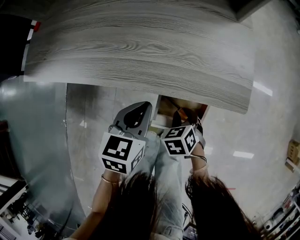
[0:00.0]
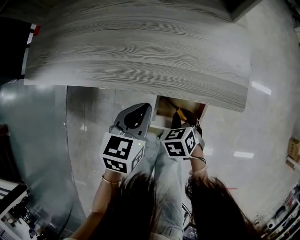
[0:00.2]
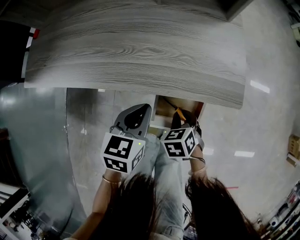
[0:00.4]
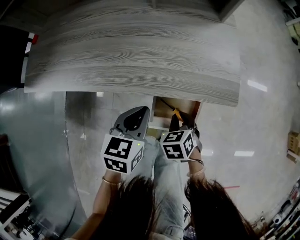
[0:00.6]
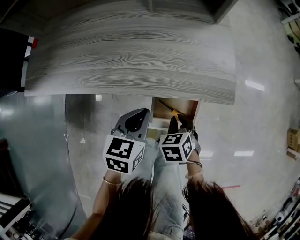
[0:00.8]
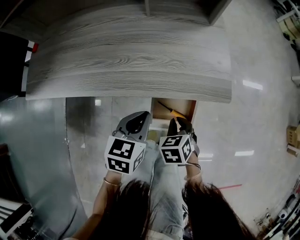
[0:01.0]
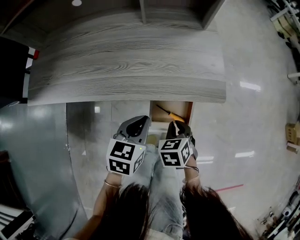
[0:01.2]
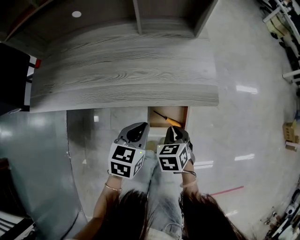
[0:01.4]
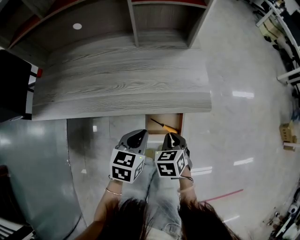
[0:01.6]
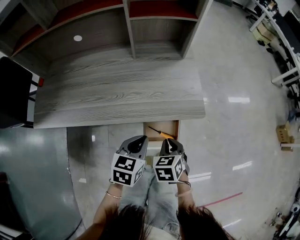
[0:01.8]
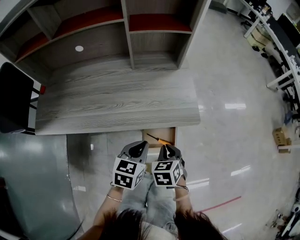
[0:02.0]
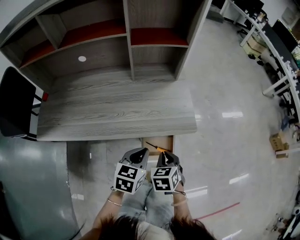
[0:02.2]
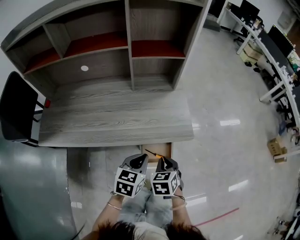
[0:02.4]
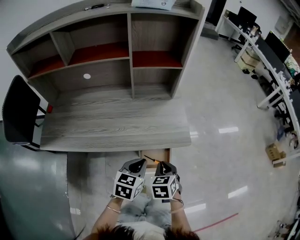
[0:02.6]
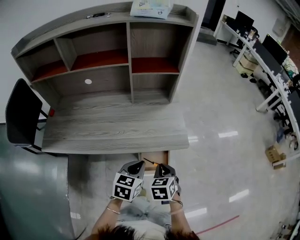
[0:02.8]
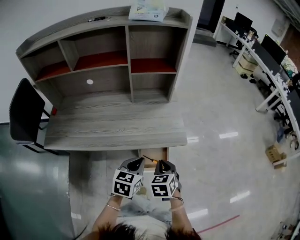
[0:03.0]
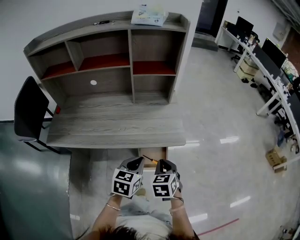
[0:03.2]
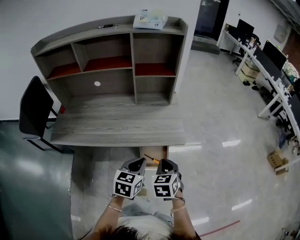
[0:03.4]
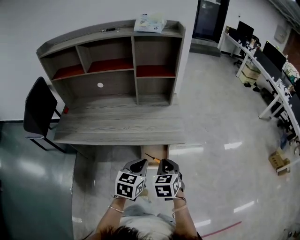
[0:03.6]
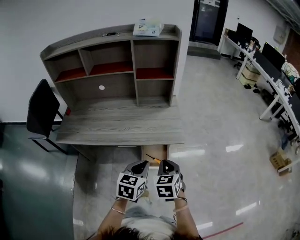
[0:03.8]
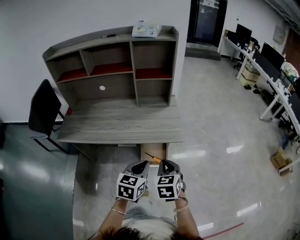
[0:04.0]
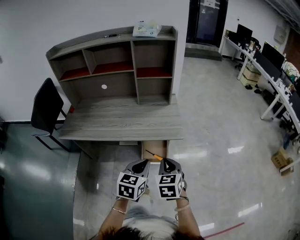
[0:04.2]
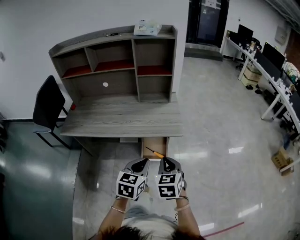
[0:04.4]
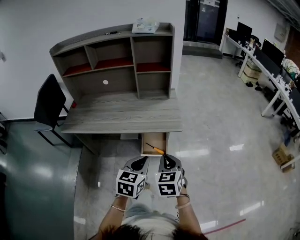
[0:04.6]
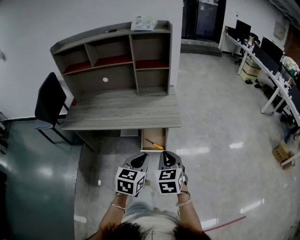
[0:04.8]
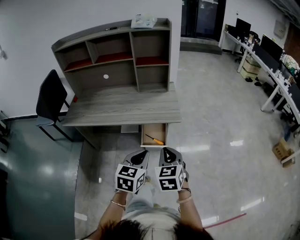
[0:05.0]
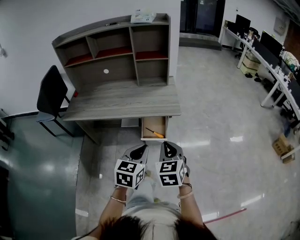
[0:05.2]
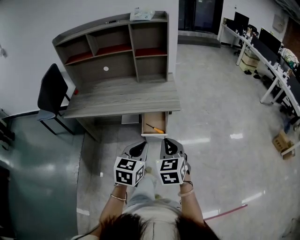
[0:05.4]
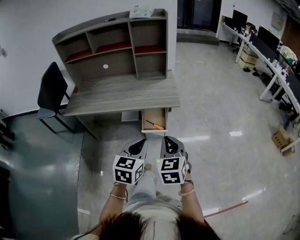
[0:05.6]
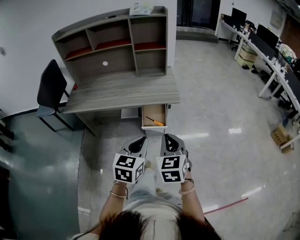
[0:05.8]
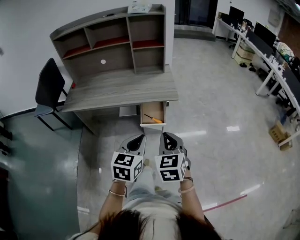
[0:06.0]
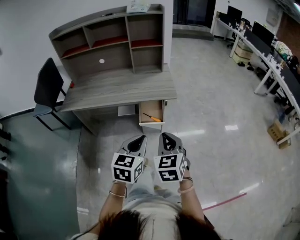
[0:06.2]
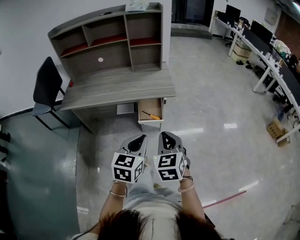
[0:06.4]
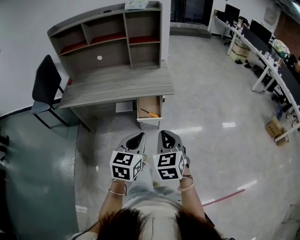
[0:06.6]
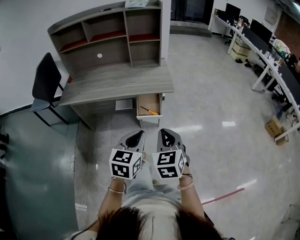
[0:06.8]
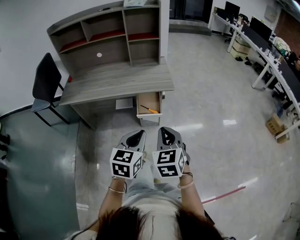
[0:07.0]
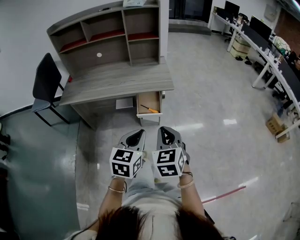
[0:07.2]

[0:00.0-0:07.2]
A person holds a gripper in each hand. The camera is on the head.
0:00.0 to 0:01.4: The left gripper moves about 5 cm, while the right gripper goes some 10 cm upward.
0:01.4 to 0:02.8: Both grippers travel together upward, roughly 15 cm.
0:02.8 to 0:04.4: Both grippers travel together backward, upward and to the right, approximately 20 cm.
0:04.4 to 0:05.8: The two grippers go approximately 15 cm backward.
0:05.8 to 0:07.2: The right gripper moves backward, some 5 cm.

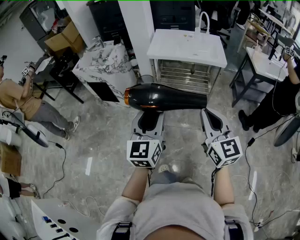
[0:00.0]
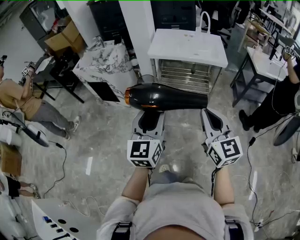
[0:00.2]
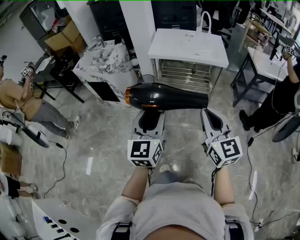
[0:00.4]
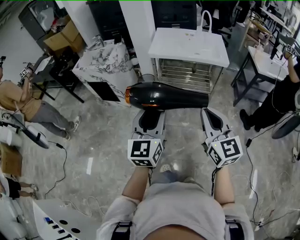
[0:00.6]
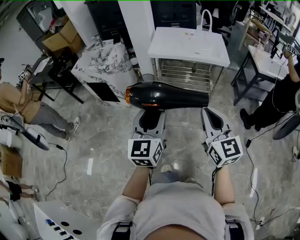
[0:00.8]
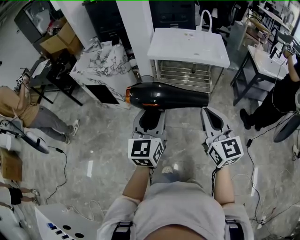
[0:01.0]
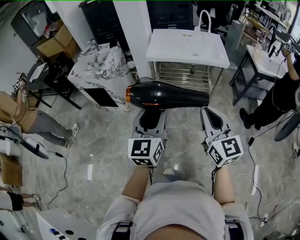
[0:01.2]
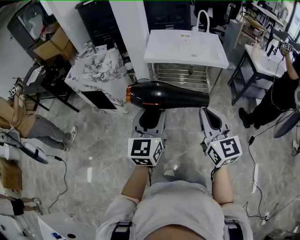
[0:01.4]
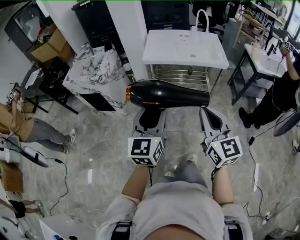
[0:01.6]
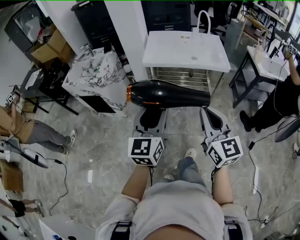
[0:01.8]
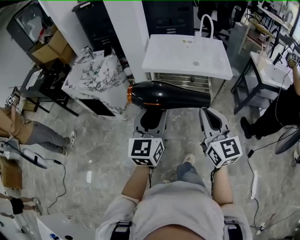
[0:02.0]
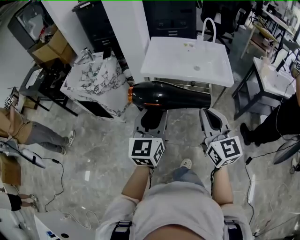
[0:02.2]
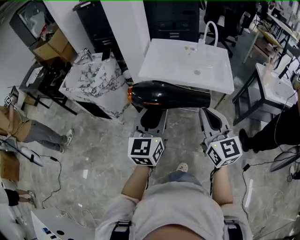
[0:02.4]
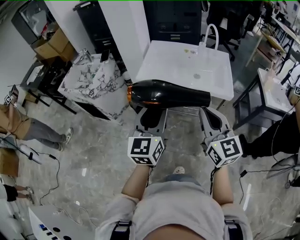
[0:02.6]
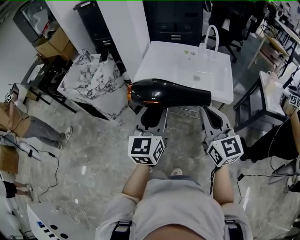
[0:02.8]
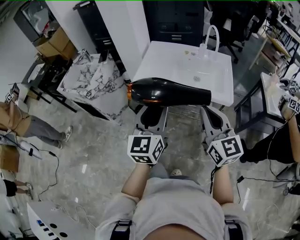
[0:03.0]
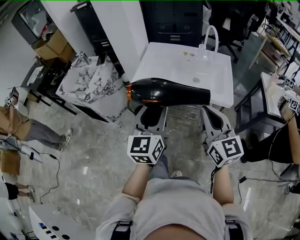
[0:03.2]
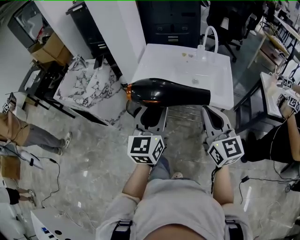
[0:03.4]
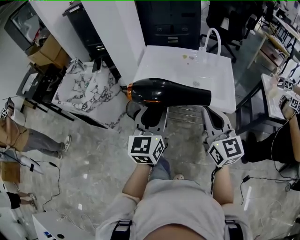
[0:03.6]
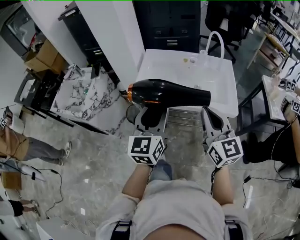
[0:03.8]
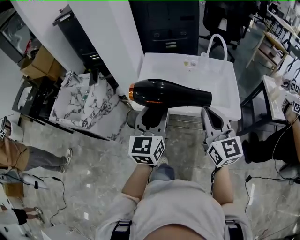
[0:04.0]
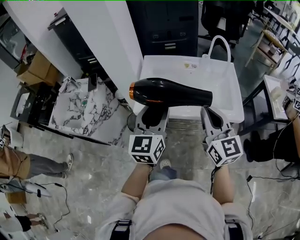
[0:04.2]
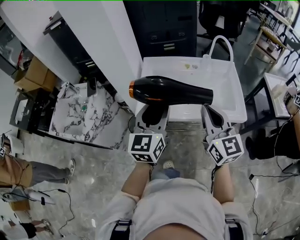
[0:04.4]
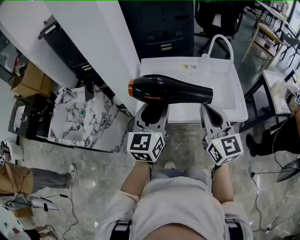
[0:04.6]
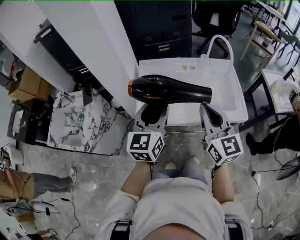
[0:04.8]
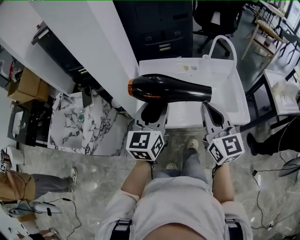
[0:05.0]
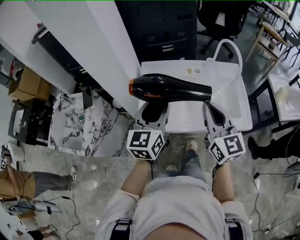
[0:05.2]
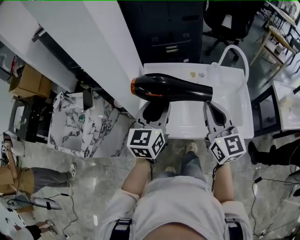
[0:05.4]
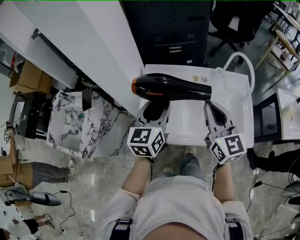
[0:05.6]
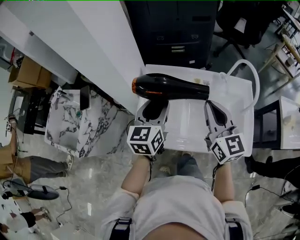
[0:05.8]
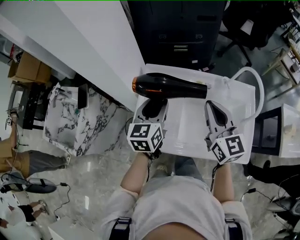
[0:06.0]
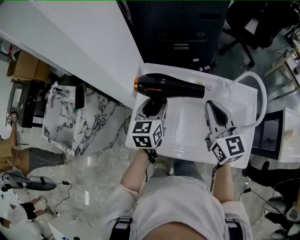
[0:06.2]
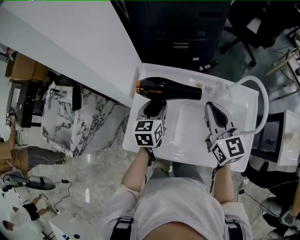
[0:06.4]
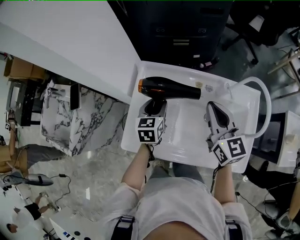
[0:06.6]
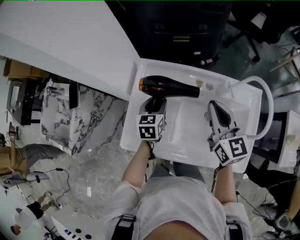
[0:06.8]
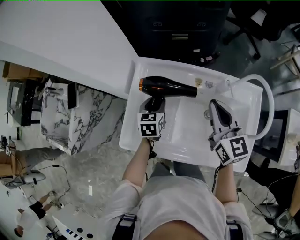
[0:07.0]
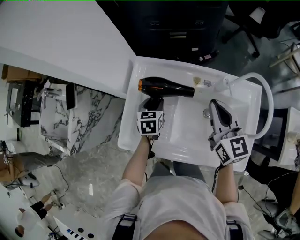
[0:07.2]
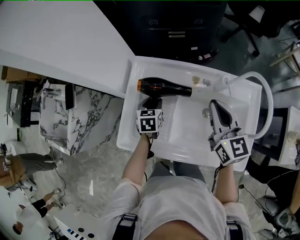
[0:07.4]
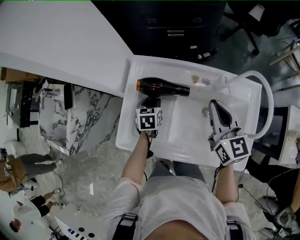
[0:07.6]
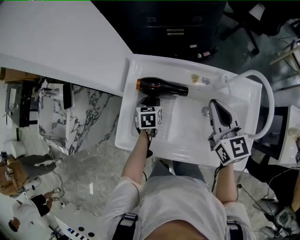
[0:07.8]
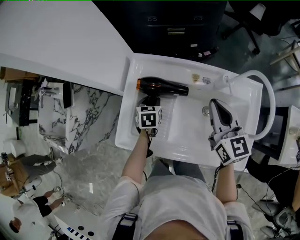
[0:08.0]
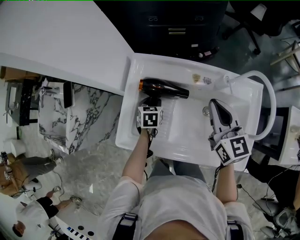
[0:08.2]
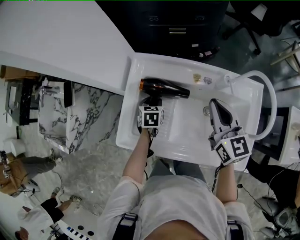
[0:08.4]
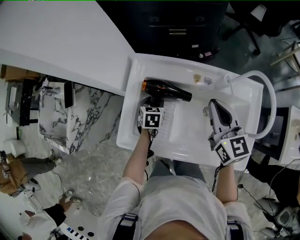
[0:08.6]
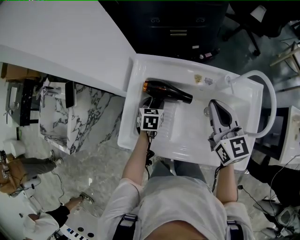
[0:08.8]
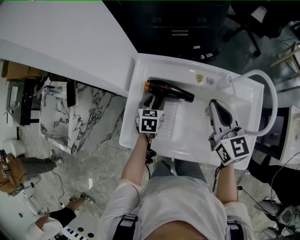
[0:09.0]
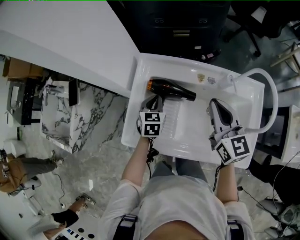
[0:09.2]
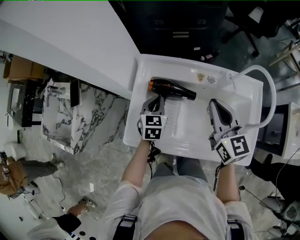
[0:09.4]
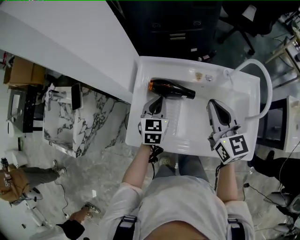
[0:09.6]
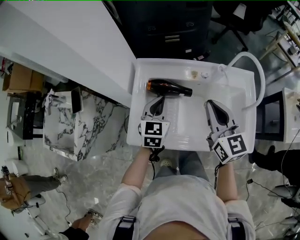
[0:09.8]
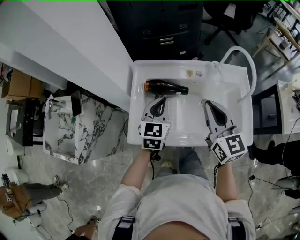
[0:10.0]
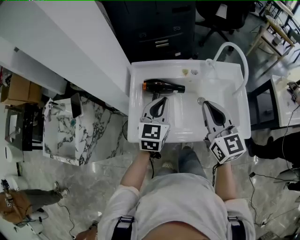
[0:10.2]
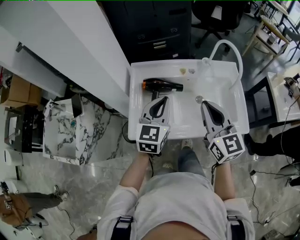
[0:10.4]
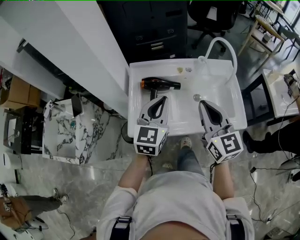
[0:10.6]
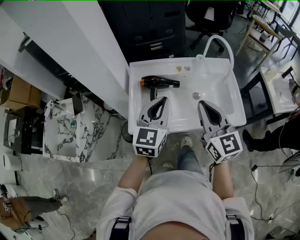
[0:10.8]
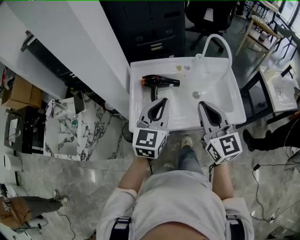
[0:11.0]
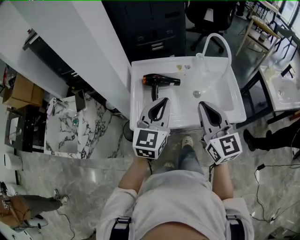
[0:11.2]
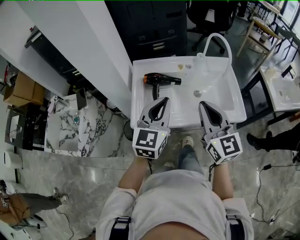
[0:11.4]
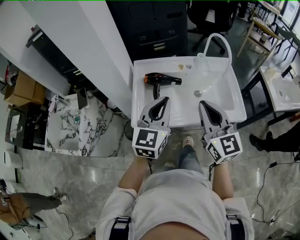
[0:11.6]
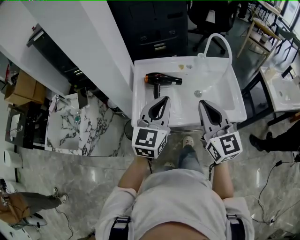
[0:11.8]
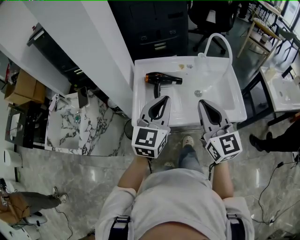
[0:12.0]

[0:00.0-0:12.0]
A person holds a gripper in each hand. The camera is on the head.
0:00.0 to 0:01.6: The two grippers go about 10 cm forward.
0:01.6 to 0:03.0: Both grippers travel together forward and to the right, about 30 cm.
0:03.0 to 0:04.4: The grippers both shift forward by roughly 25 cm.
0:04.4 to 0:06.0: The grippers both shift forward by about 25 cm.
0:06.0 to 0:07.6: The left gripper goes some 25 cm downward, and points its fingers some 30 degrees further downward. The right gripper goes roughly 10 cm downward, to the right and forward.
0:07.6 to 0:09.0: There are only small adjustments of the grippers.
0:09.0 to 0:10.4: The left gripper goes roughly 25 cm upward and backward, angles its fingers upward, by roughly 30 degrees, and closes its fingers, while the right gripper heads backward and upward, covering approximately 20 cm.
0:10.4 to 0:12.0: The left gripper goes some 15 cm backward and upward, while the right gripper goes approximately 10 cm backward.

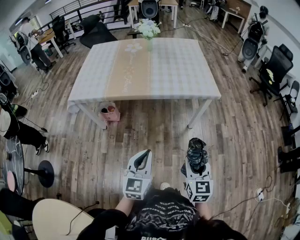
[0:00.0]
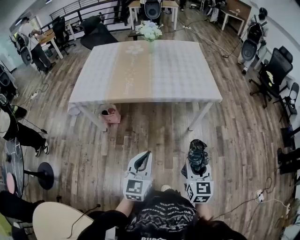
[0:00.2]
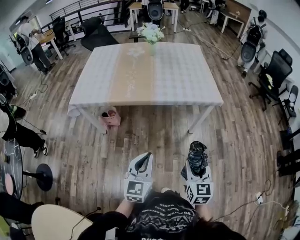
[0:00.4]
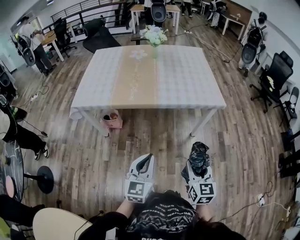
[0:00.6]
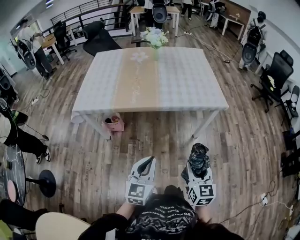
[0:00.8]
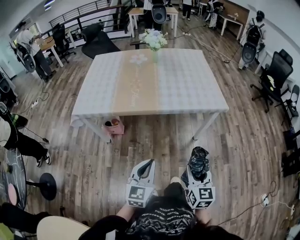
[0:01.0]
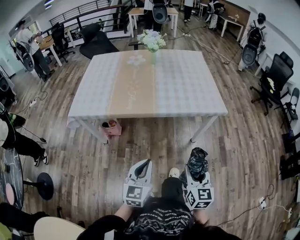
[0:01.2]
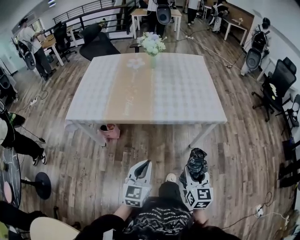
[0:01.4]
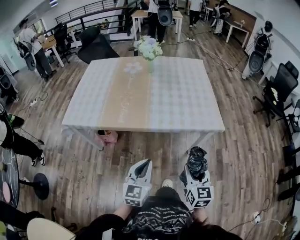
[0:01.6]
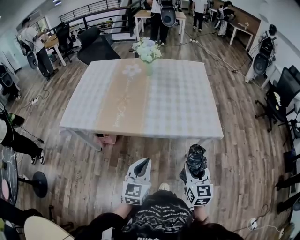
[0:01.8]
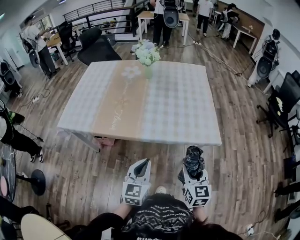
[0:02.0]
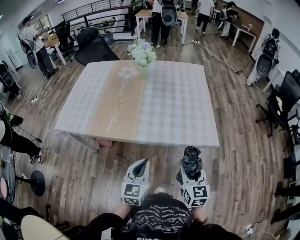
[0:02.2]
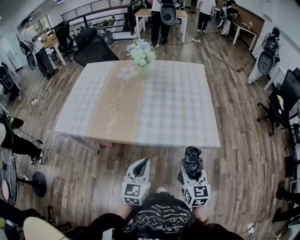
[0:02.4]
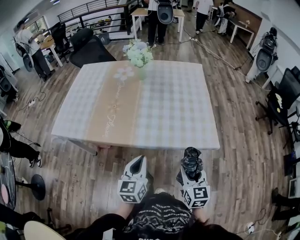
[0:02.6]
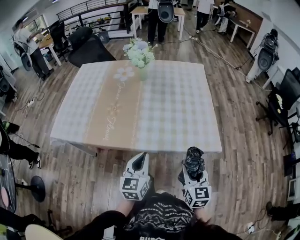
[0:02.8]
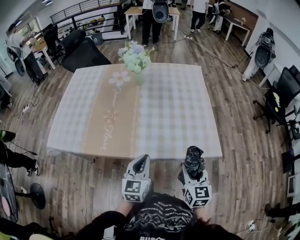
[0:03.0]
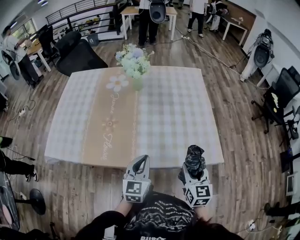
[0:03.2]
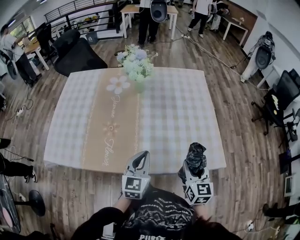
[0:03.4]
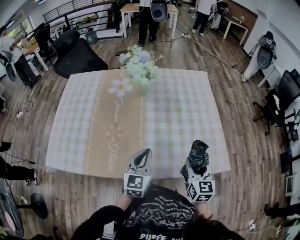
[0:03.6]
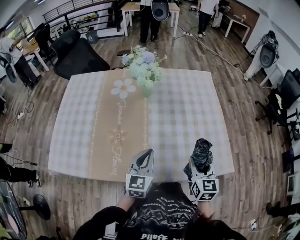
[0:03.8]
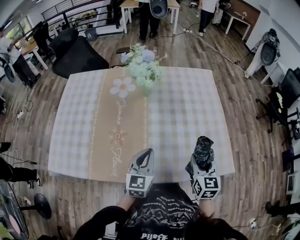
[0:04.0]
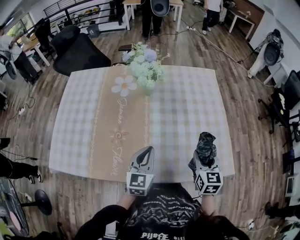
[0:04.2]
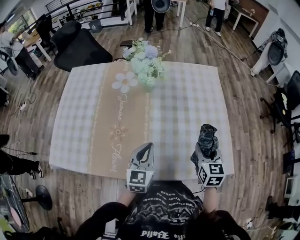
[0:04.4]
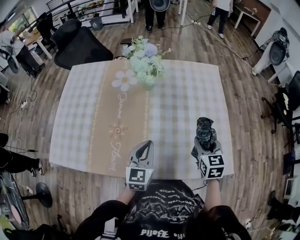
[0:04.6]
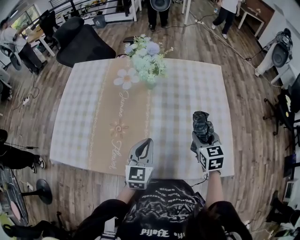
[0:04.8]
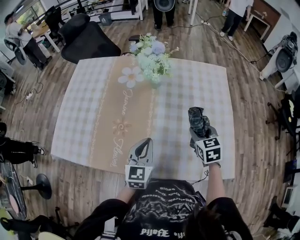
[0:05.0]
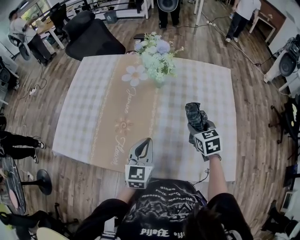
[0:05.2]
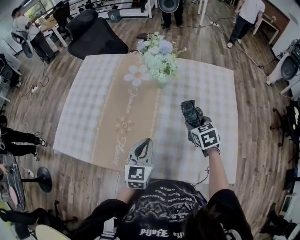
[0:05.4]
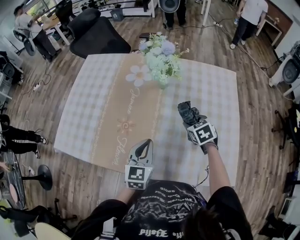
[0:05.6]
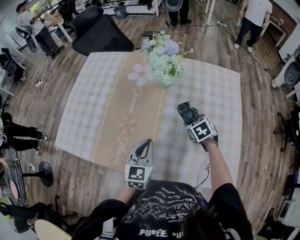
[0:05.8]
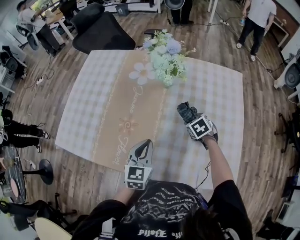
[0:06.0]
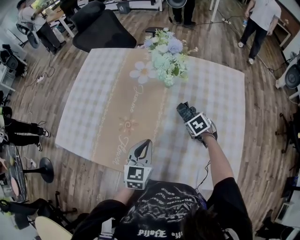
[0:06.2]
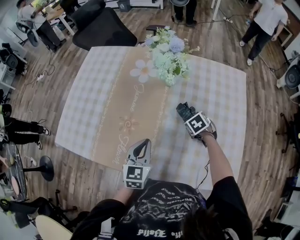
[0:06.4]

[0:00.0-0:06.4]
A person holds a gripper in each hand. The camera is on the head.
0:00.0 to 0:01.6: Both grippers travel together forward, approximately 20 cm.
0:01.6 to 0:03.2: The grippers both shift forward by some 35 cm.
0:03.2 to 0:04.8: The left gripper moves forward and to the left, approximately 20 cm. Meanwhile the right gripper goes roughly 25 cm forward.
0:04.8 to 0:06.4: The right gripper goes some 20 cm downward, forward and to the left, and tips its fingers downward by about 30 degrees. Meanwhile the left gripper moves approximately 5 cm.
